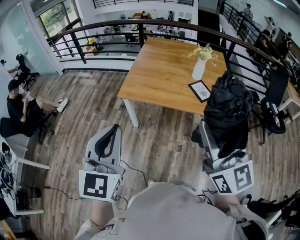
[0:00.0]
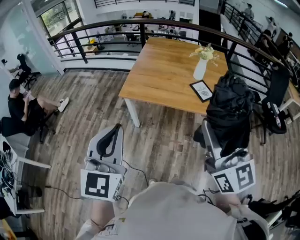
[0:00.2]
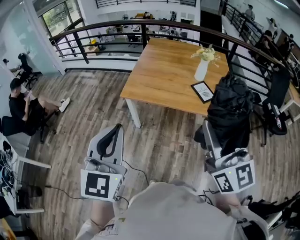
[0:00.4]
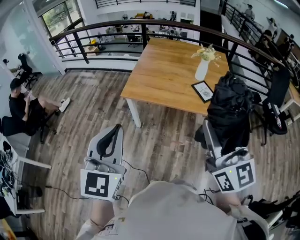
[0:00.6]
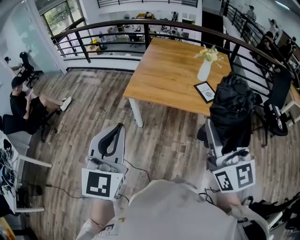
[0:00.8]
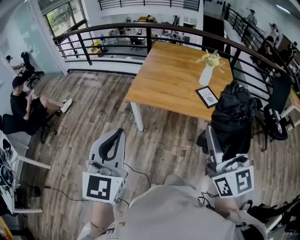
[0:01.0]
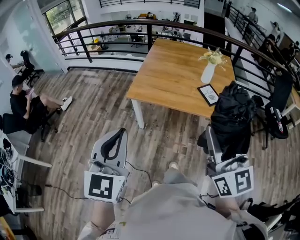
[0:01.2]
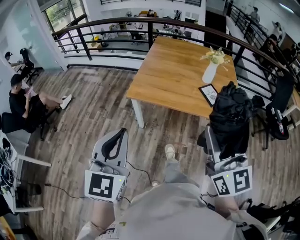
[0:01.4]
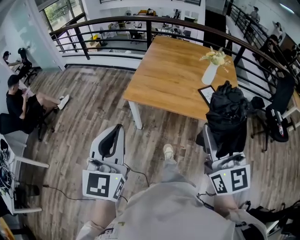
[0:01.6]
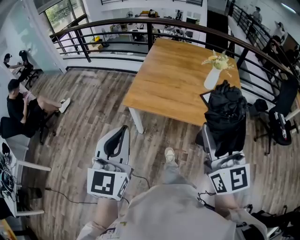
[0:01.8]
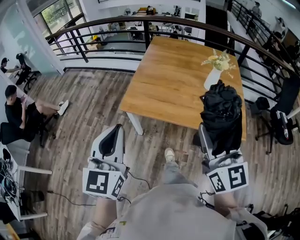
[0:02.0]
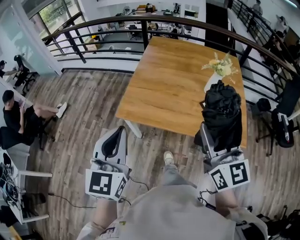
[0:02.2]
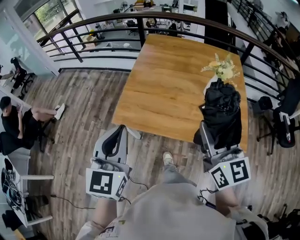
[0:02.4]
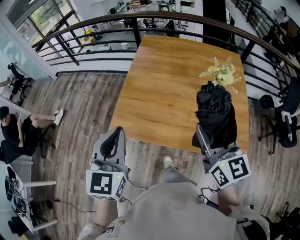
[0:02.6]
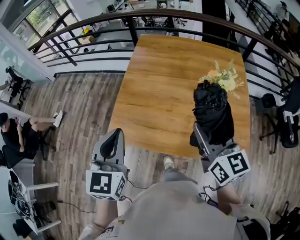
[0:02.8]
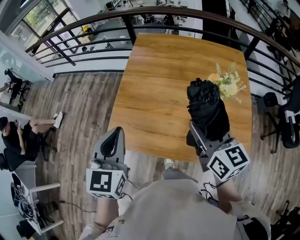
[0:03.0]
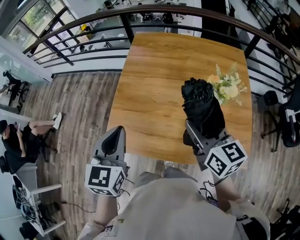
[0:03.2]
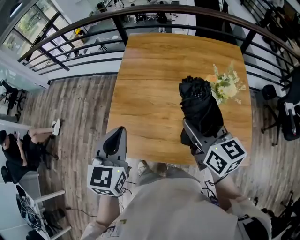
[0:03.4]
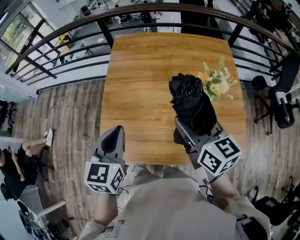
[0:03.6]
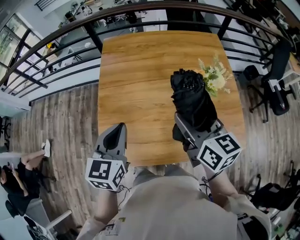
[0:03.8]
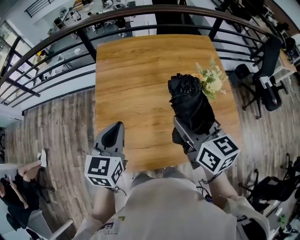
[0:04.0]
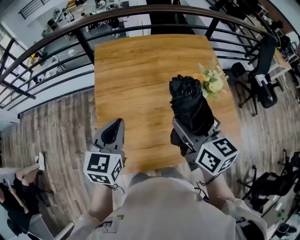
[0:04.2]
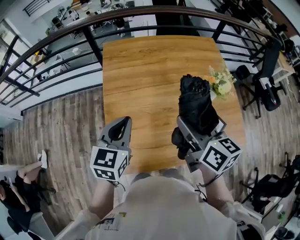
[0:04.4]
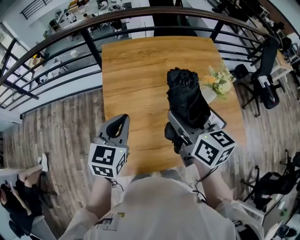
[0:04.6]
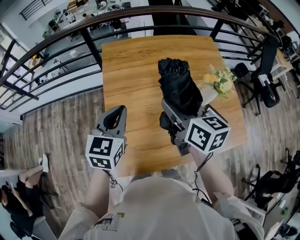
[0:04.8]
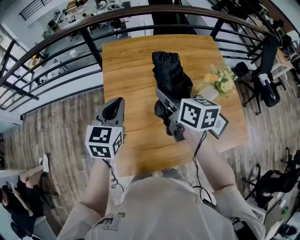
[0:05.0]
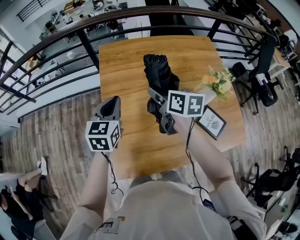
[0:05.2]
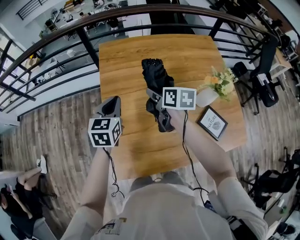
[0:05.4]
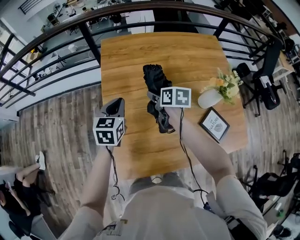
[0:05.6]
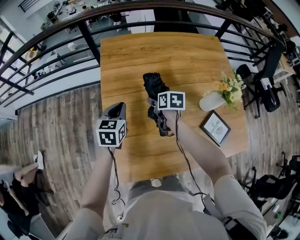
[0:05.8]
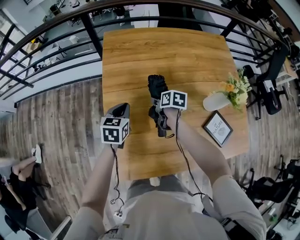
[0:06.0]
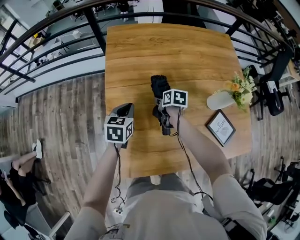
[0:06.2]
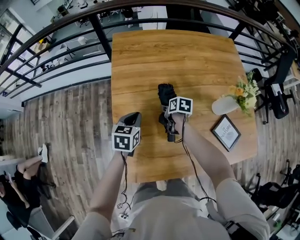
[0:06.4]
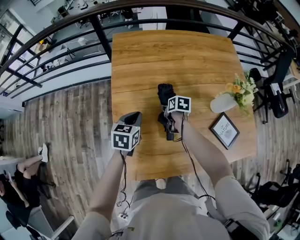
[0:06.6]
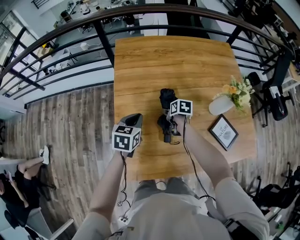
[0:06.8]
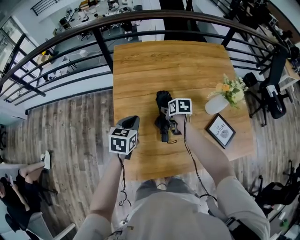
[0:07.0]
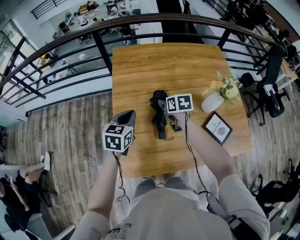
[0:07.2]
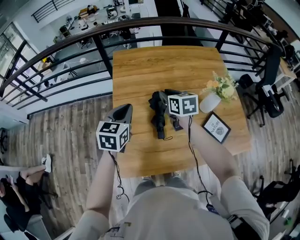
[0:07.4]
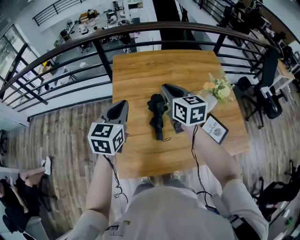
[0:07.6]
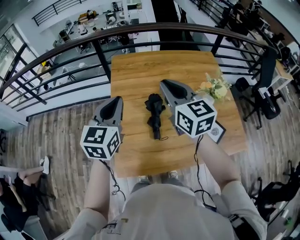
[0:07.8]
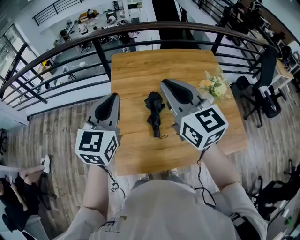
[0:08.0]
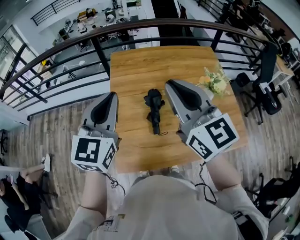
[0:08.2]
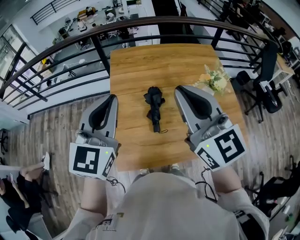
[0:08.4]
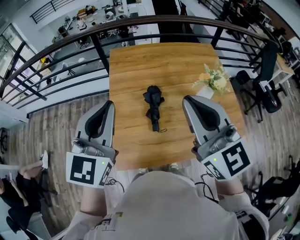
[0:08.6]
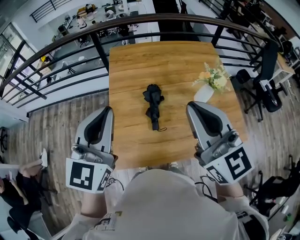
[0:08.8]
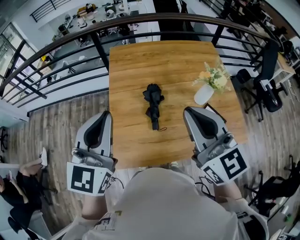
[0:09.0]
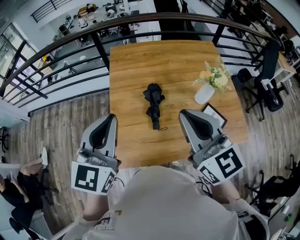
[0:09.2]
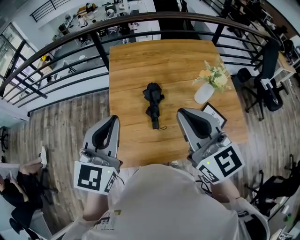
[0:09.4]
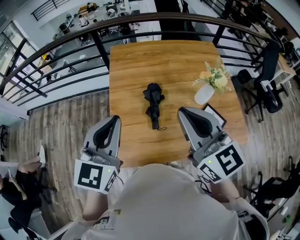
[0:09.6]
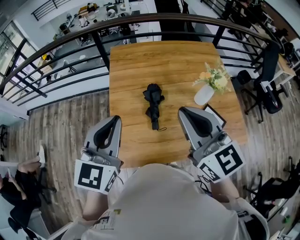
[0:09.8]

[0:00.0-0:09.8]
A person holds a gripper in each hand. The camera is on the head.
0:00.0 to 0:01.4: The grippers stay close to where they were, moving slightly.
0:01.4 to 0:02.8: The two grippers travel together, forward, about 50 cm. The right gripper changes its angle by approximately 20 degrees.
0:02.8 to 0:04.2: The left gripper moves forward, some 25 cm, and changes its angle by about 30 degrees. The right gripper travels forward by roughly 15 cm, and rotates roughly 20 degrees.
0:04.2 to 0:05.6: The right gripper moves downward, forward and to the left, some 30 cm, and rotates about 30 degrees; the left gripper goes about 20 cm forward, downward and to the left.
0:05.6 to 0:07.0: The left gripper travels backward by roughly 5 cm; the right gripper is displaced downward by about 10 cm.
0:07.0 to 0:08.4: The right gripper goes some 50 cm upward and backward, tips its fingers upward by approximately 60 degrees, and closes, while the left gripper travels upward by some 35 cm, and points its fingers roughly 40 degrees further upward.
0:08.4 to 0:09.8: The left gripper shifts by about 5 cm, while the right gripper is displaced downward by about 5 cm.

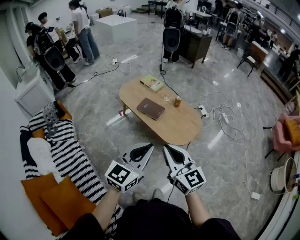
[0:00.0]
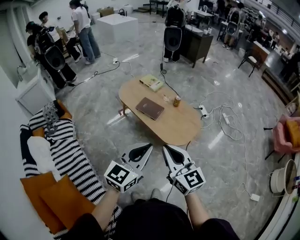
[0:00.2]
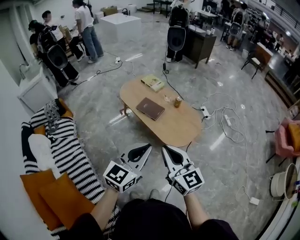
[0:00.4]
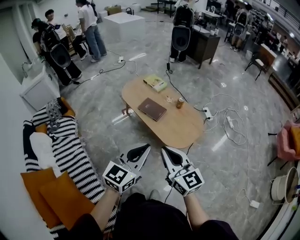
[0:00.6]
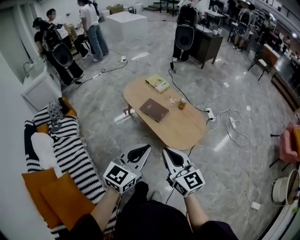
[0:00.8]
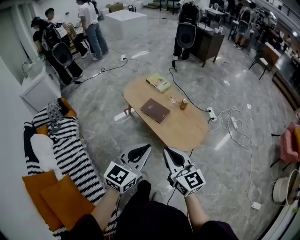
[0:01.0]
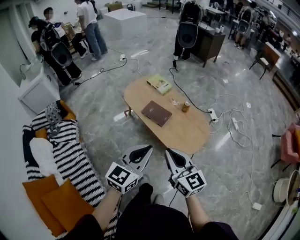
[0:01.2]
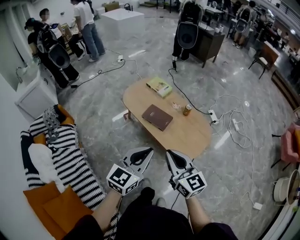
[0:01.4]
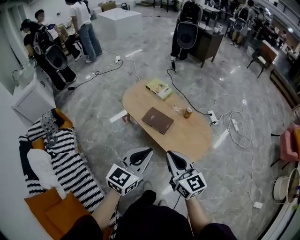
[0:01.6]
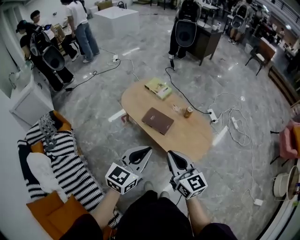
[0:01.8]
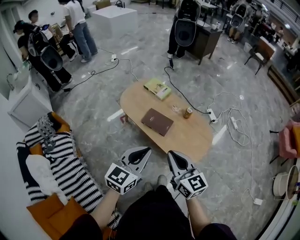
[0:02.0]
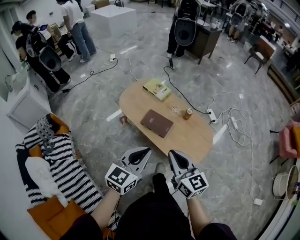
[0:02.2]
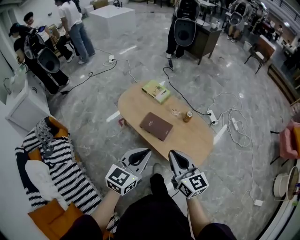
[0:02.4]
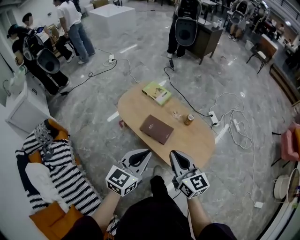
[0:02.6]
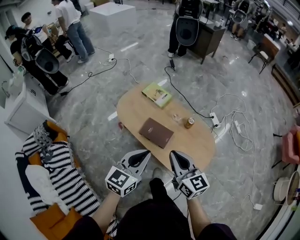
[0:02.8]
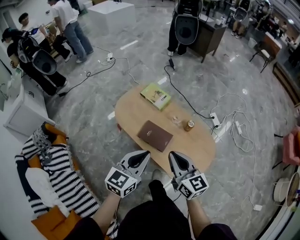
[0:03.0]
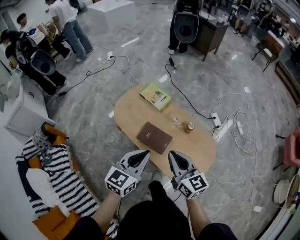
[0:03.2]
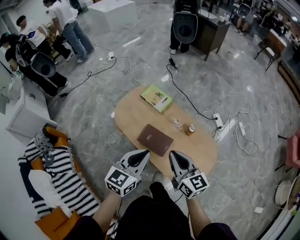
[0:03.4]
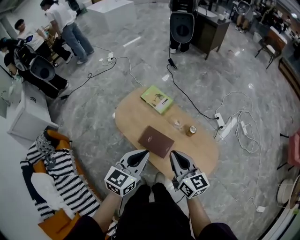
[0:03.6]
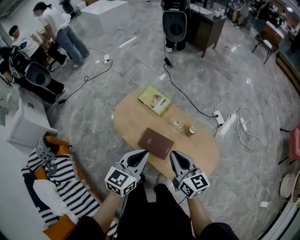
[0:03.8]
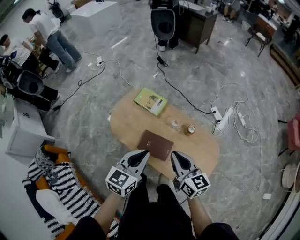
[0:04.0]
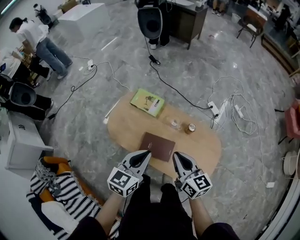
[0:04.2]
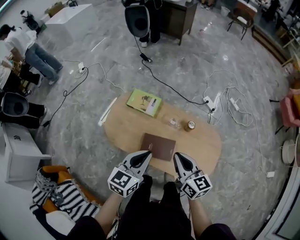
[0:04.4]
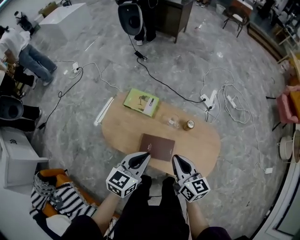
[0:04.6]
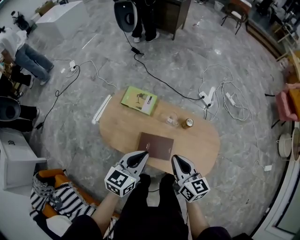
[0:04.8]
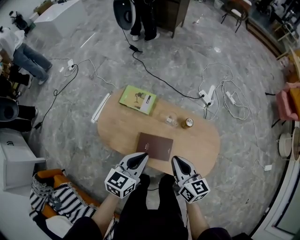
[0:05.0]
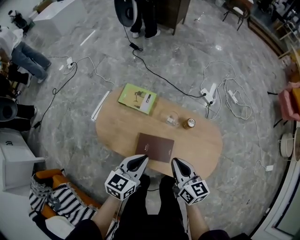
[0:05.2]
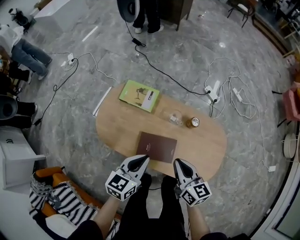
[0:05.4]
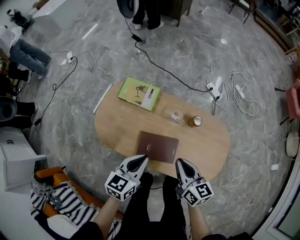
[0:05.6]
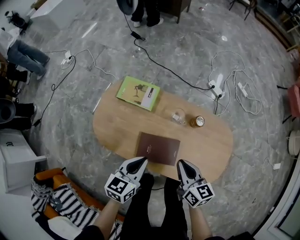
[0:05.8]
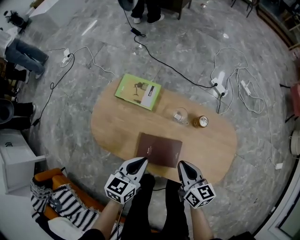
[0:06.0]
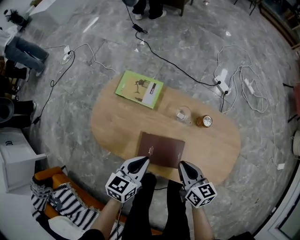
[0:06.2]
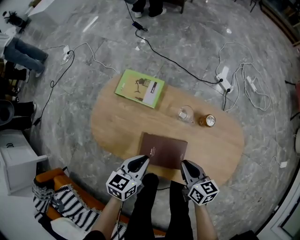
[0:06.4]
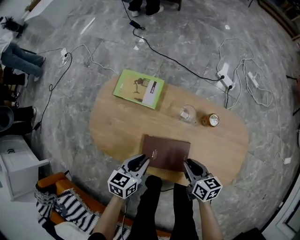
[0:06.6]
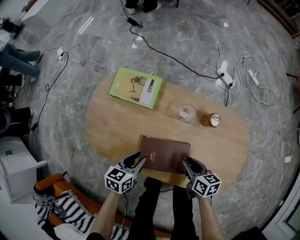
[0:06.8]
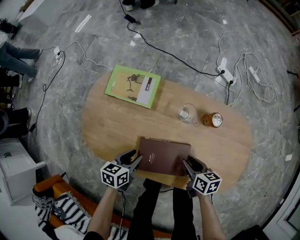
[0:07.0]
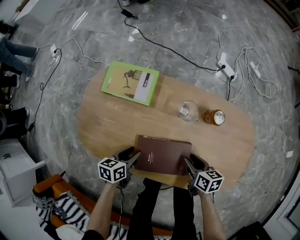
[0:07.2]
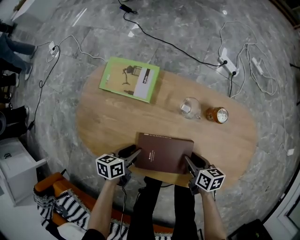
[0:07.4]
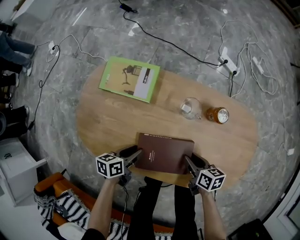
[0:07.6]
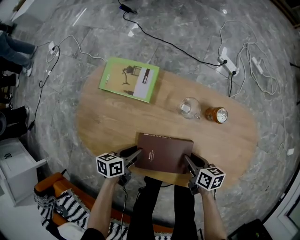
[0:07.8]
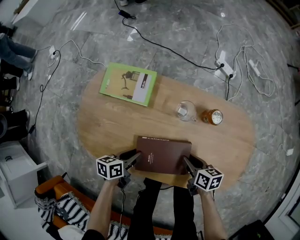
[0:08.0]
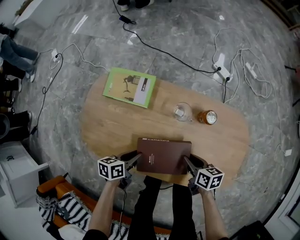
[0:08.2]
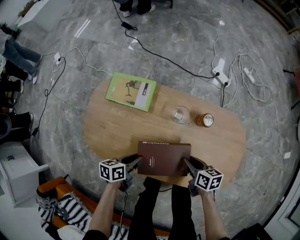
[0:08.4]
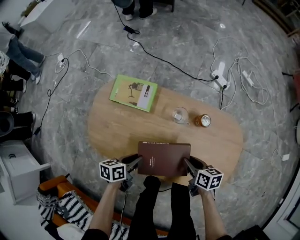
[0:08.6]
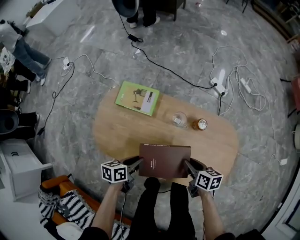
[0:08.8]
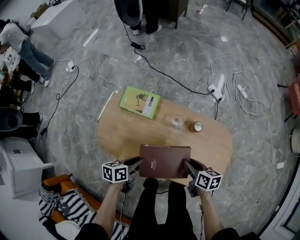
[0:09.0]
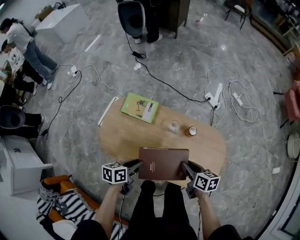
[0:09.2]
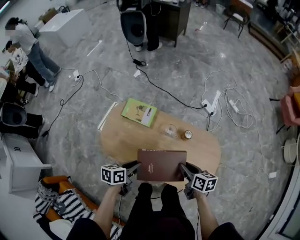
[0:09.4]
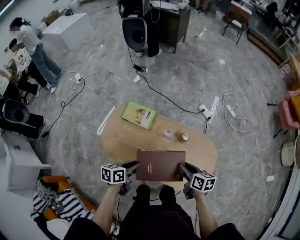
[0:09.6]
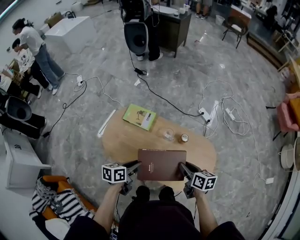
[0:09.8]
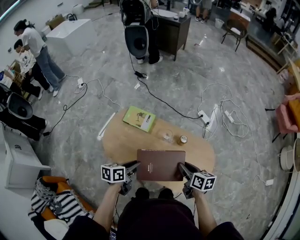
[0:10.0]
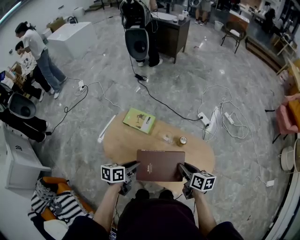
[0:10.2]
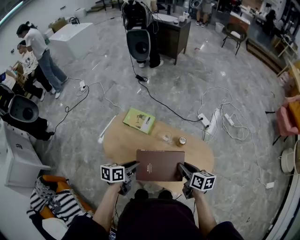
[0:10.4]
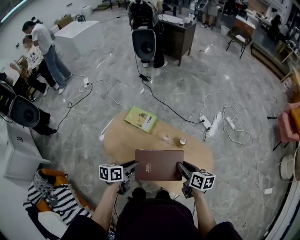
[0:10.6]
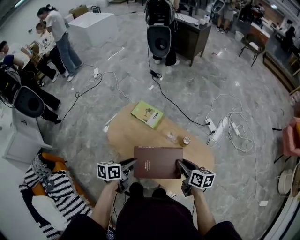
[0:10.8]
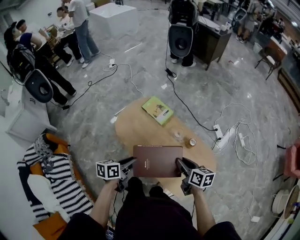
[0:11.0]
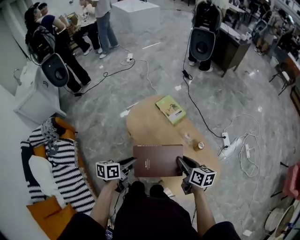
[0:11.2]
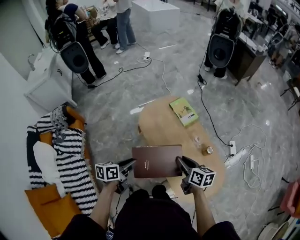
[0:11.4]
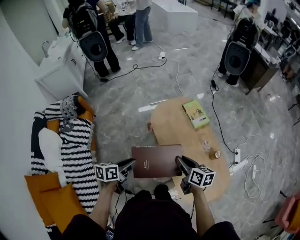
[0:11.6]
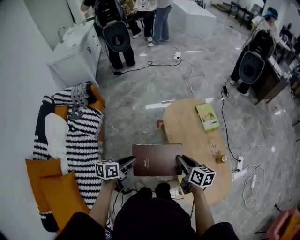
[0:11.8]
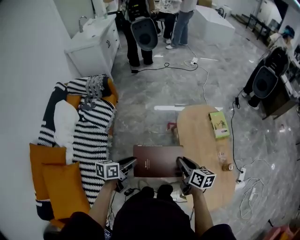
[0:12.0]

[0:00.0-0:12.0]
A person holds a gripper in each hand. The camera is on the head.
0:00.0 to 0:01.6: The two grippers go about 20 cm forward.
0:01.6 to 0:03.0: The grippers both shift forward by some 25 cm.
0:03.0 to 0:04.4: Both grippers travel together forward, about 15 cm. The right gripper turns by approximately 20 degrees.
0:04.4 to 0:06.0: The two grippers go roughly 25 cm downward.
0:06.0 to 0:07.6: The two grippers go roughly 25 cm downward. The left gripper turns by some 30 degrees, and opens up. Meanwhile the right gripper changes its angle by roughly 30 degrees, and opens up.
0:07.6 to 0:09.0: The grippers both shift upward by some 25 cm.
0:09.0 to 0:10.4: Both grippers move upward, some 20 cm.
0:10.4 to 0:12.0: The left gripper ends up approximately 40 cm from where it was, and swivels roughly 60 degrees. The right gripper moves some 35 cm, and changes its angle by approximately 60 degrees.

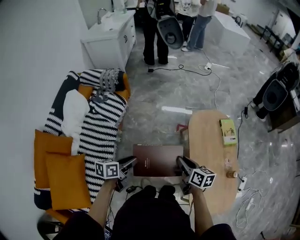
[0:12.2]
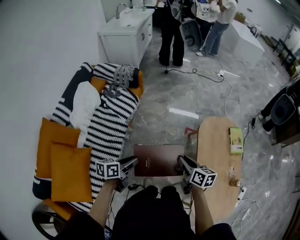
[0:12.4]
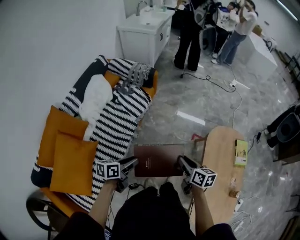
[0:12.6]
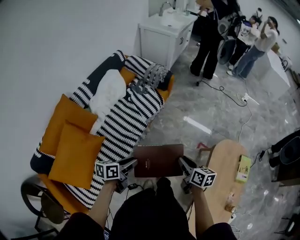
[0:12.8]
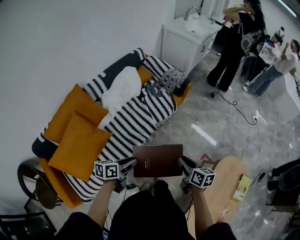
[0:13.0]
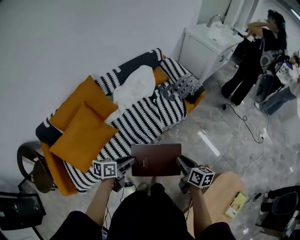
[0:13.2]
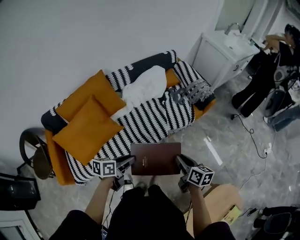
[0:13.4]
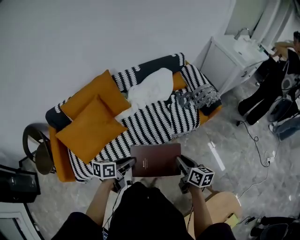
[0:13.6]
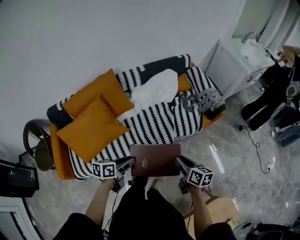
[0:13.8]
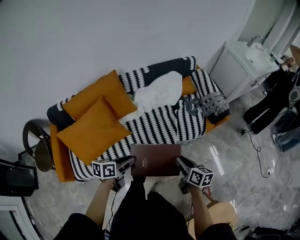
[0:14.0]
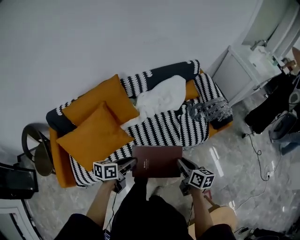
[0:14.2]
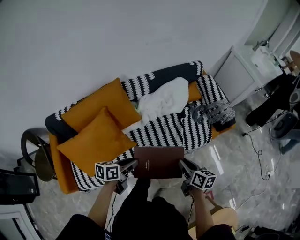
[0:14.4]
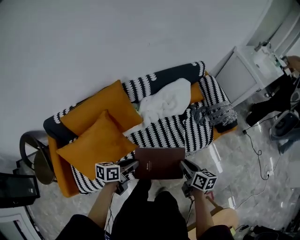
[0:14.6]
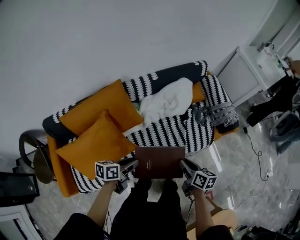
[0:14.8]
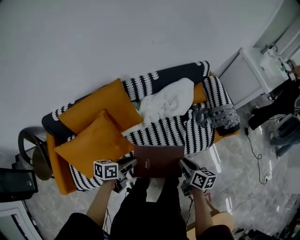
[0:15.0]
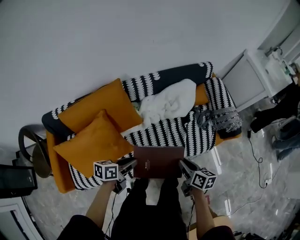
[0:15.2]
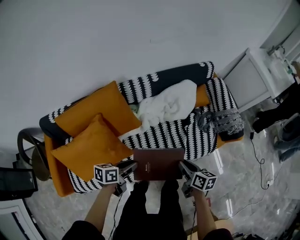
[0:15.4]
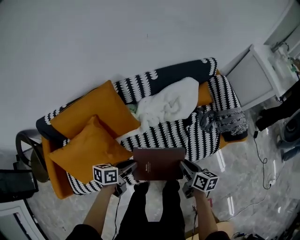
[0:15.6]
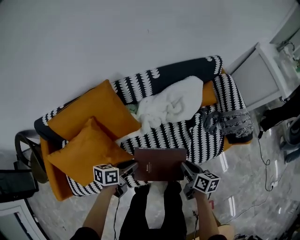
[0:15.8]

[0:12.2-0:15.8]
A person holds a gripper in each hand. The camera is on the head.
0:12.2 to 0:14.0: The left gripper moves about 30 cm, and swivels some 60 degrees. The right gripper changes place by about 50 cm, and rotates roughly 60 degrees.
0:14.0 to 0:15.8: Both grippers move forward and downward, about 30 cm.
